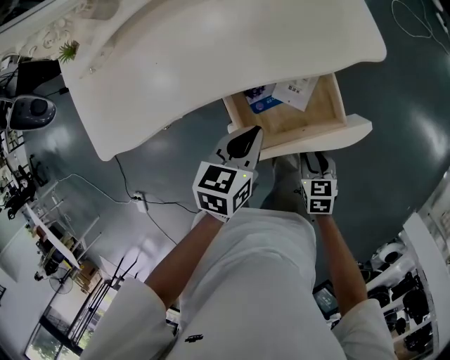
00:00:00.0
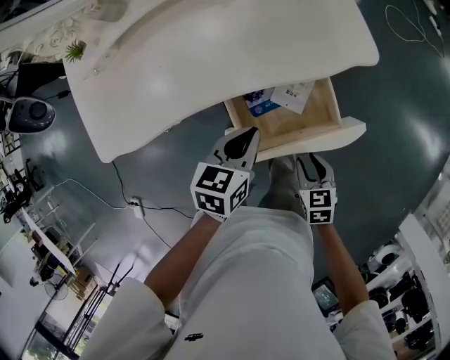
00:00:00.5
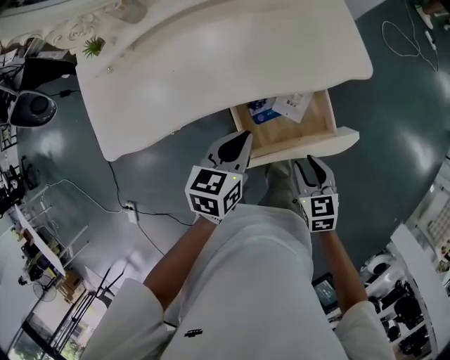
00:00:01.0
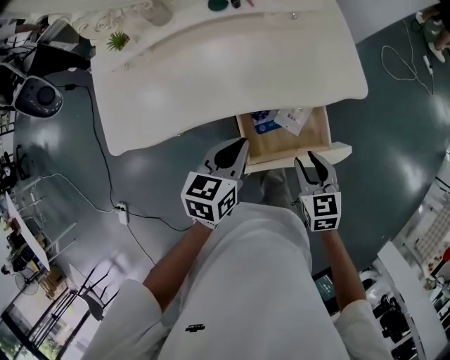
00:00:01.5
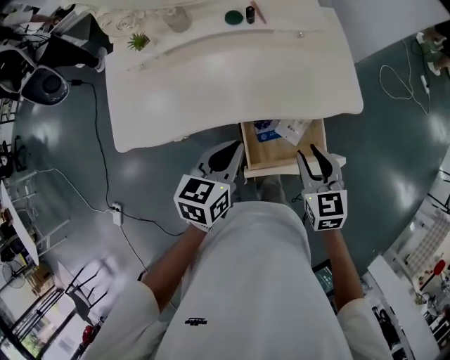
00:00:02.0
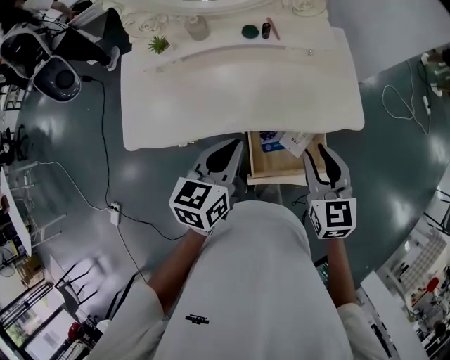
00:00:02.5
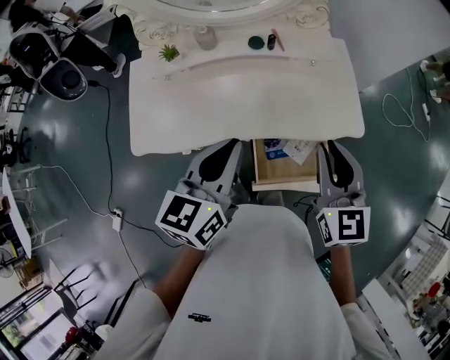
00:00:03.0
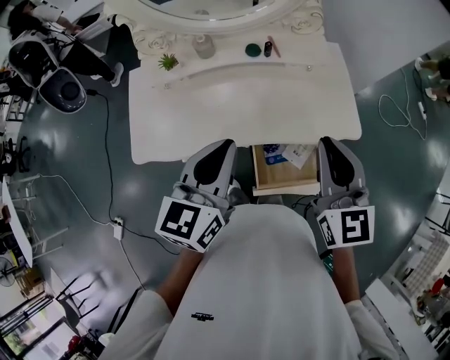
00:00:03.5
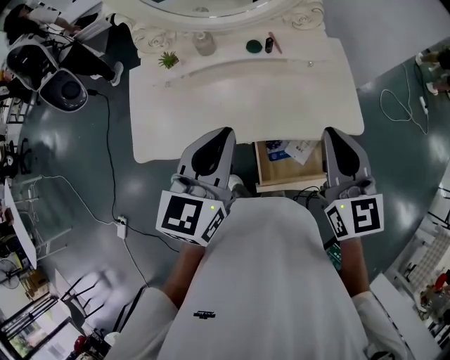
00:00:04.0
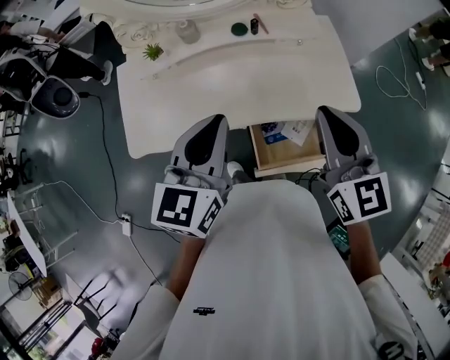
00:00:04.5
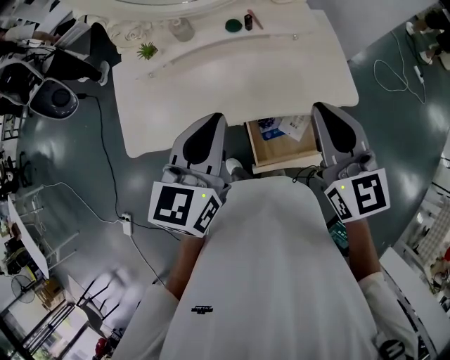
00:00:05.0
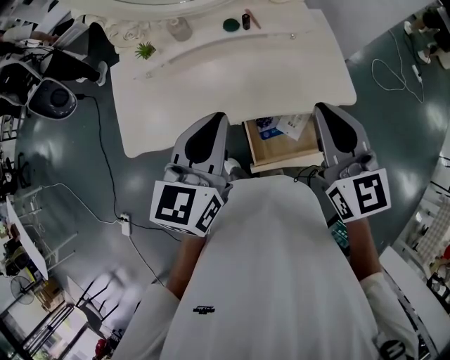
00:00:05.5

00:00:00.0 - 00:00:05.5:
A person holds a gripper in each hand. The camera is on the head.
00:00:00.0 - 00:00:02.0: The right gripper moves upward and forward, approximately 30 cm, and changes its angle by roughly 30 degrees. Meanwhile the left gripper goes approximately 15 cm upward and to the left.
00:00:02.0 - 00:00:03.5: The grippers both shift upward by about 20 cm. The left gripper turns by some 20 degrees. The right gripper swivels some 20 degrees, and closes up.
00:00:03.5 - 00:00:05.5: The grippers stay close to where they were, moving slightly.

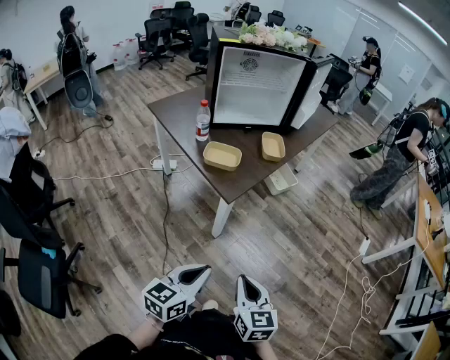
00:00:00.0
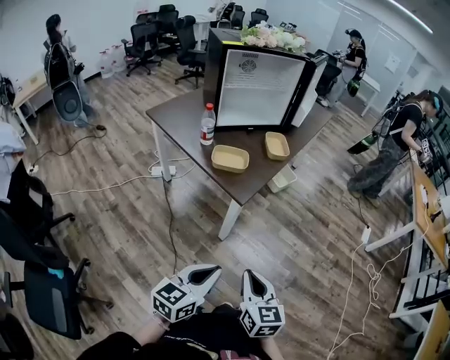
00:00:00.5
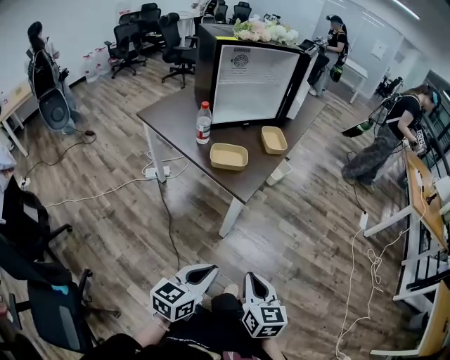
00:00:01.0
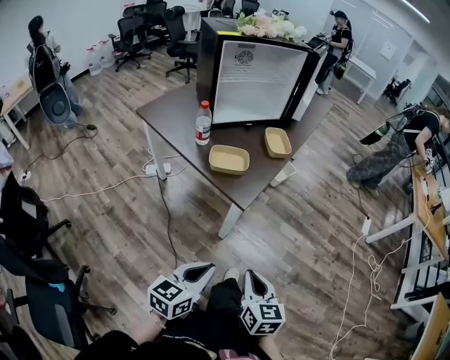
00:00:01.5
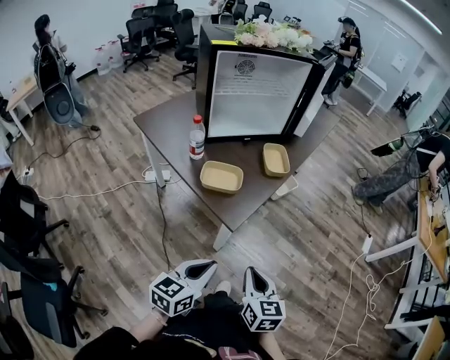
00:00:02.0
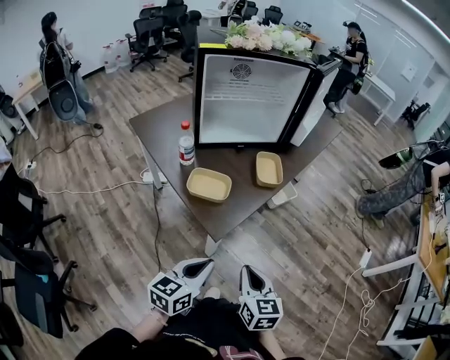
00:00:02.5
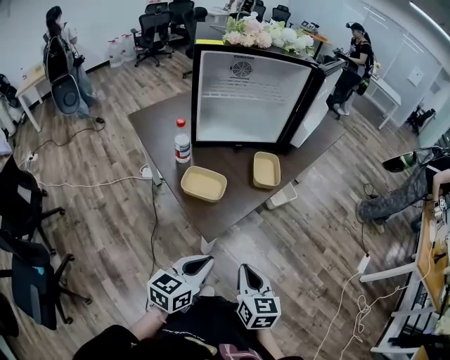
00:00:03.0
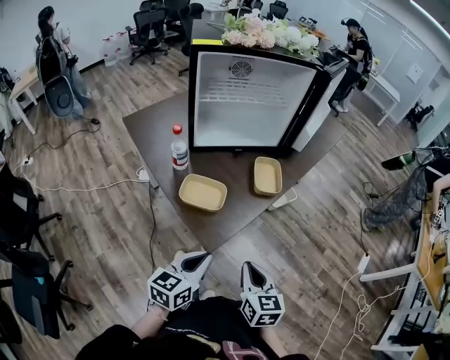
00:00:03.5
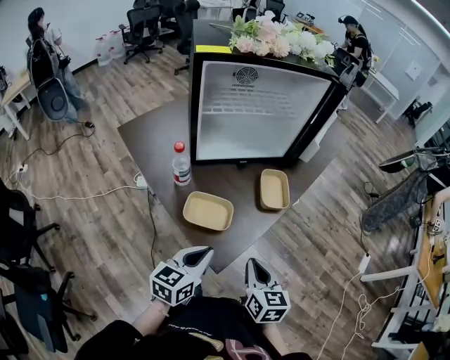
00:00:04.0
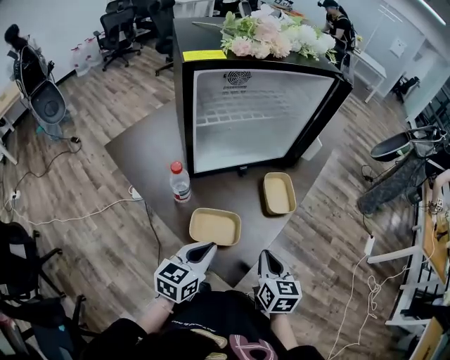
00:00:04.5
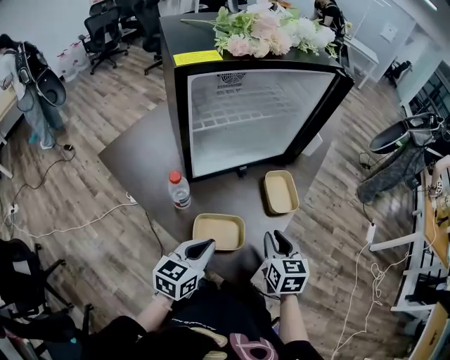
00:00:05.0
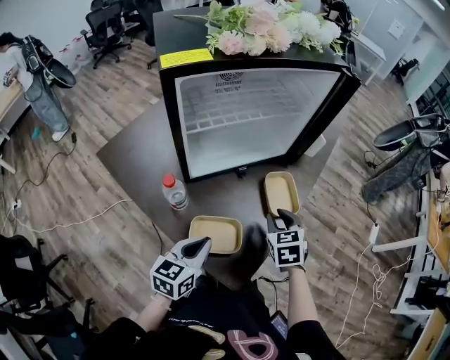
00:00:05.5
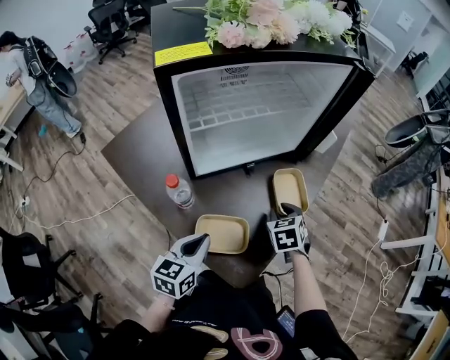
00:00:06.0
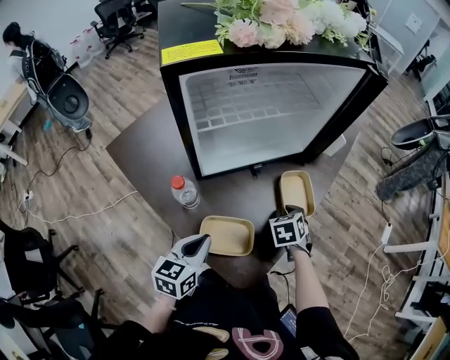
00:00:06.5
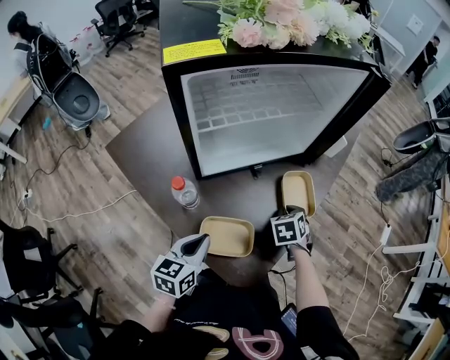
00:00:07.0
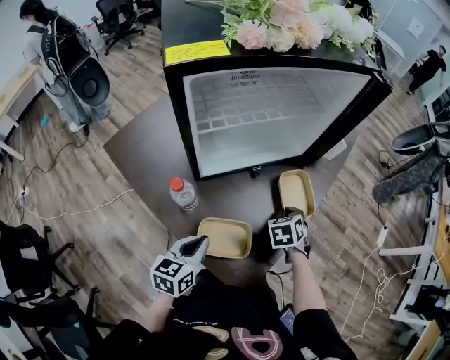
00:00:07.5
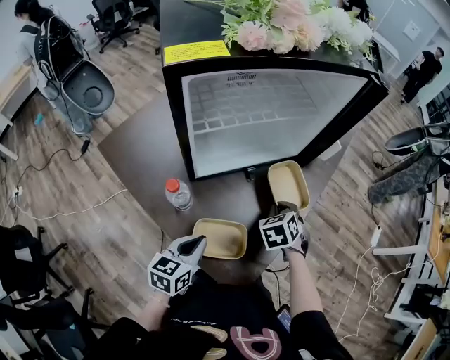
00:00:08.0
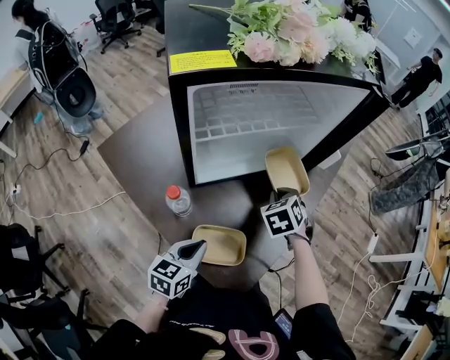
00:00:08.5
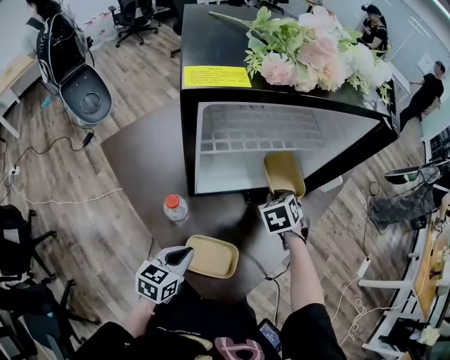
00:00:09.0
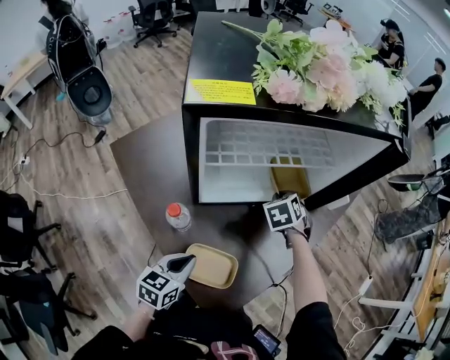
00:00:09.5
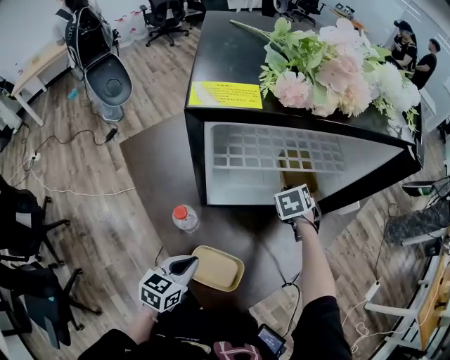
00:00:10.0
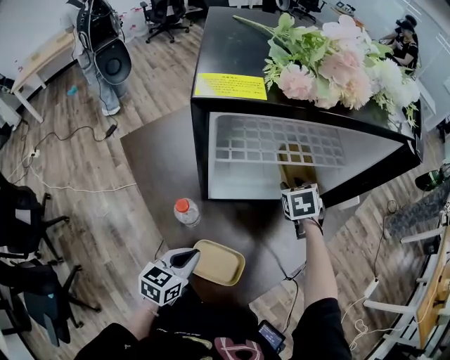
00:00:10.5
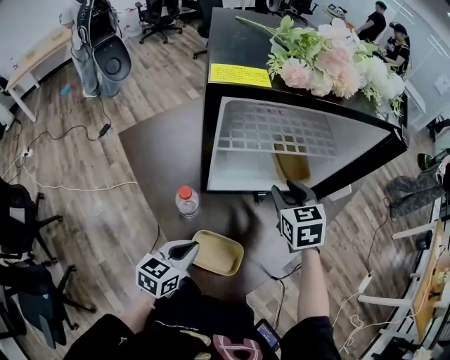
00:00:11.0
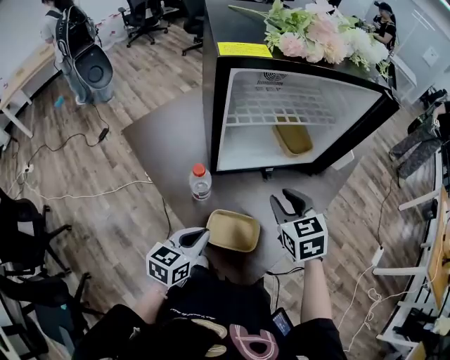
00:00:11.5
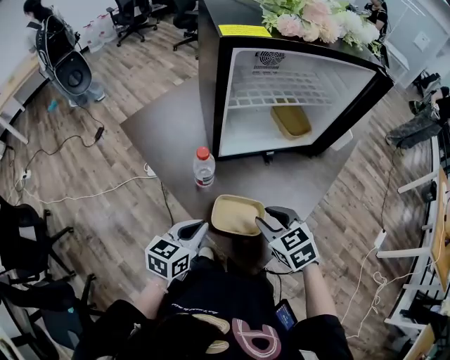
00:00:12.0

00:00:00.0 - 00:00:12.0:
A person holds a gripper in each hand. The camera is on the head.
00:00:00.0 - 00:00:02.0: The grippers both shift forward and to the left by about 15 cm.
00:00:02.0 - 00:00:04.0: The two grippers go roughly 20 cm forward.
00:00:04.0 - 00:00:06.0: The left gripper is displaced forward and to the left by approximately 15 cm. Meanwhile the right gripper is displaced forward by some 25 cm, turns by about 40 degrees, and opens its fingers.
00:00:06.0 - 00:00:08.0: The grippers move only a little.
00:00:08.0 - 00:00:10.0: The right gripper is displaced forward and to the left by approximately 20 cm.
00:00:10.0 - 00:00:12.0: The right gripper heads backward, covering some 30 cm, changes its angle by approximately 30 degrees, and opens its fingers. The left gripper shifts roughly 5 cm backward.

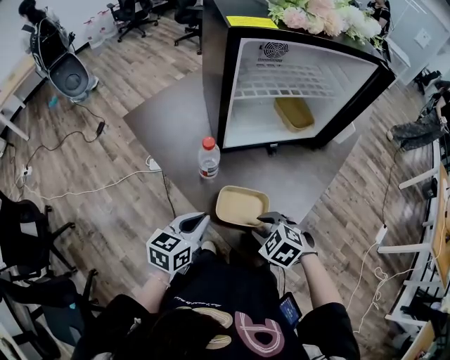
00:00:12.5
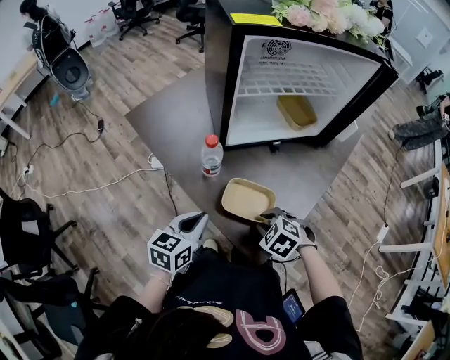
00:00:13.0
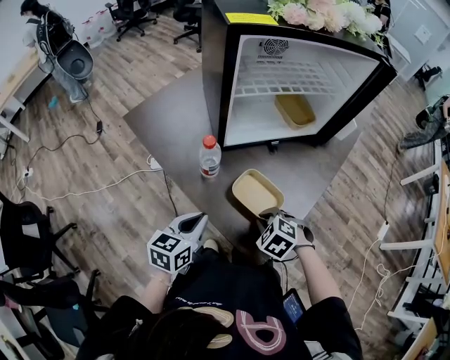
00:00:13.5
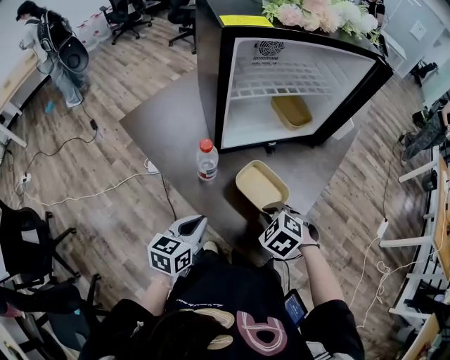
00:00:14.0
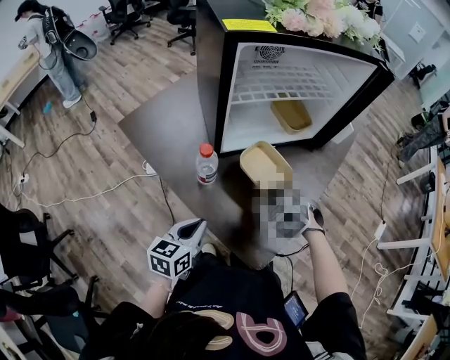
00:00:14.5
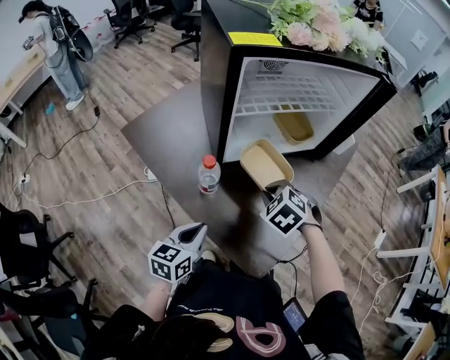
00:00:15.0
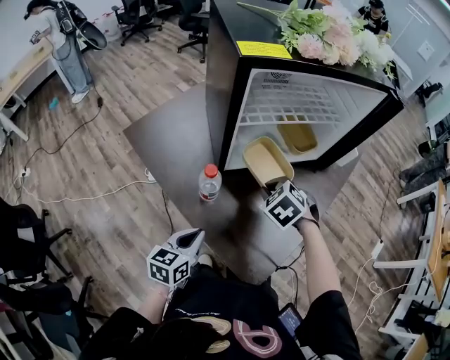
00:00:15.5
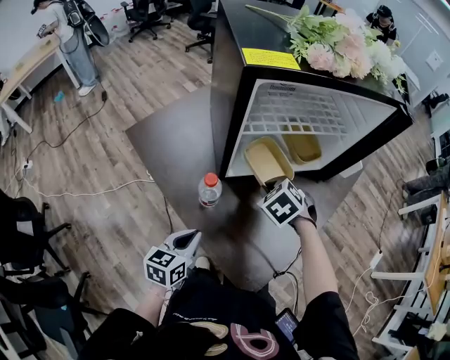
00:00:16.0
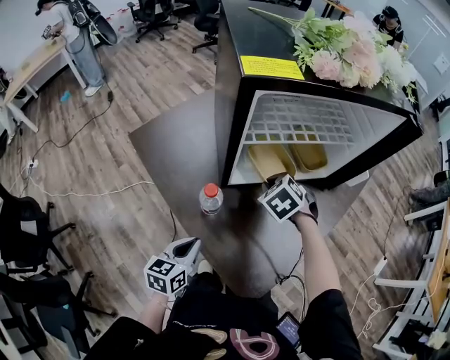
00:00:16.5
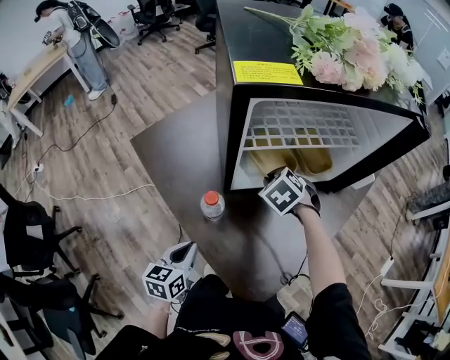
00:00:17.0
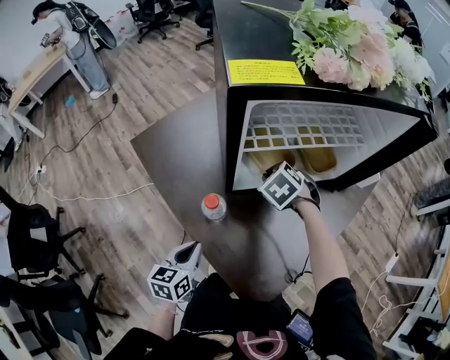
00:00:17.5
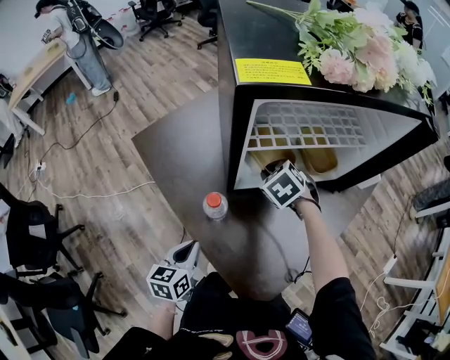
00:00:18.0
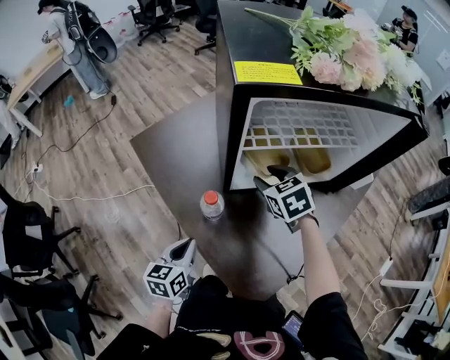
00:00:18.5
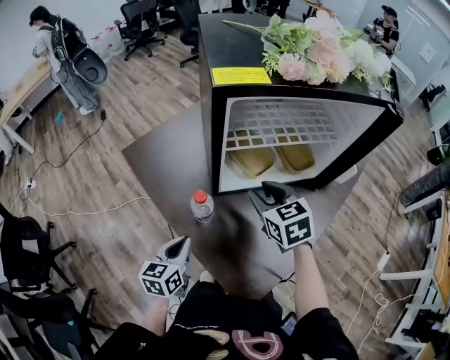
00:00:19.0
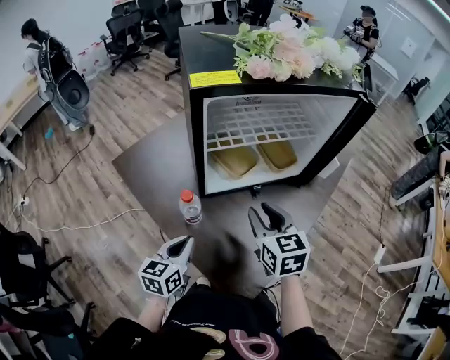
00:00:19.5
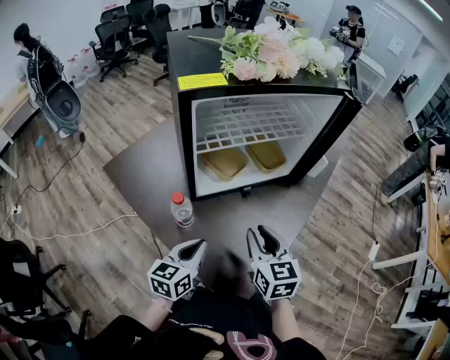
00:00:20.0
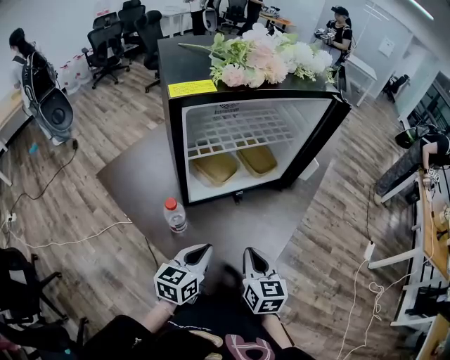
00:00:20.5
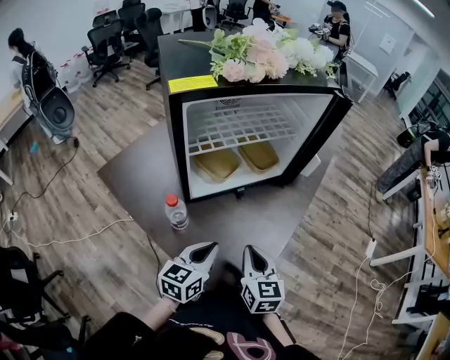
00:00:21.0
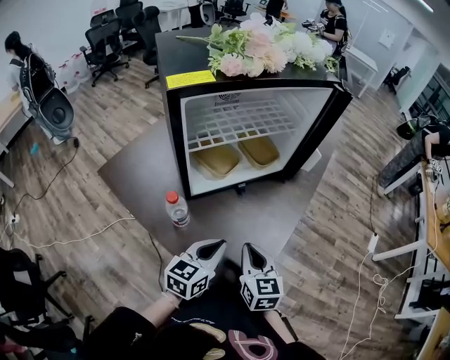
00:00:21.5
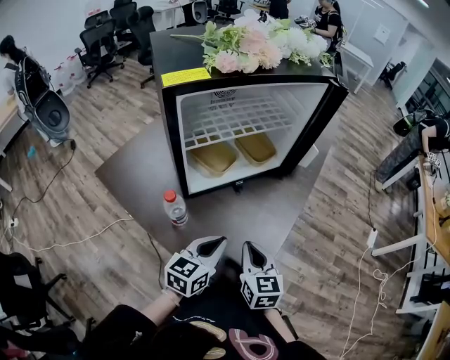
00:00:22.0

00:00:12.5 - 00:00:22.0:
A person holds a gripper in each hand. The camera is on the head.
00:00:12.5 - 00:00:14.5: The right gripper moves forward and upward, roughly 10 cm, and closes.
00:00:14.5 - 00:00:16.5: The right gripper travels forward by about 15 cm.
00:00:16.5 - 00:00:18.0: The right gripper goes some 5 cm forward.
00:00:18.0 - 00:00:20.0: The left gripper is displaced to the right and upward by some 15 cm, and rotates approximately 20 degrees, while the right gripper heads backward, to the right and upward, covering roughly 25 cm, and points its fingers approximately 40 degrees further upward.
00:00:20.0 - 00:00:22.0: The right gripper is displaced downward by about 5 cm, and closes. Meanwhile the left gripper heads to the right, covering some 5 cm.
